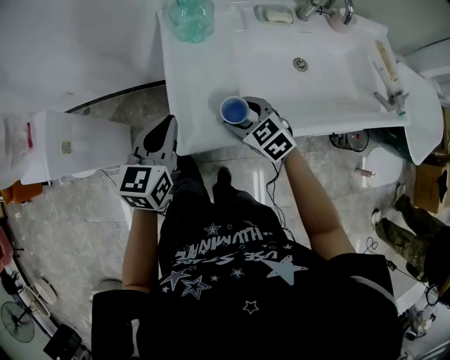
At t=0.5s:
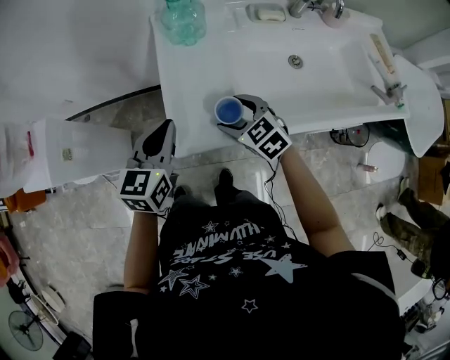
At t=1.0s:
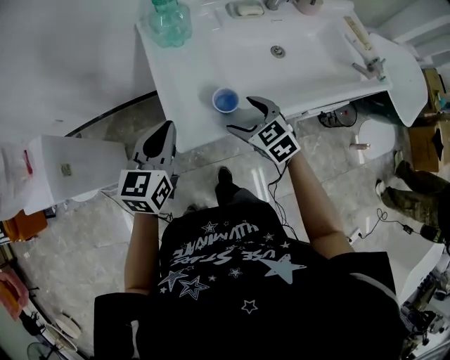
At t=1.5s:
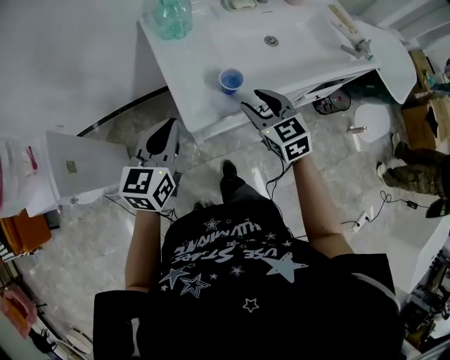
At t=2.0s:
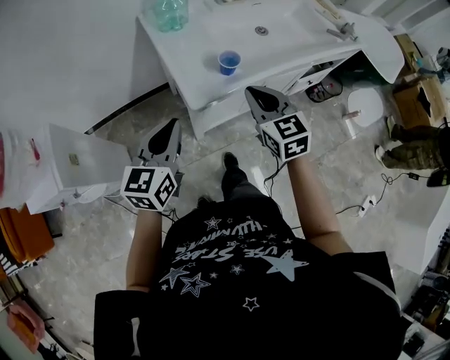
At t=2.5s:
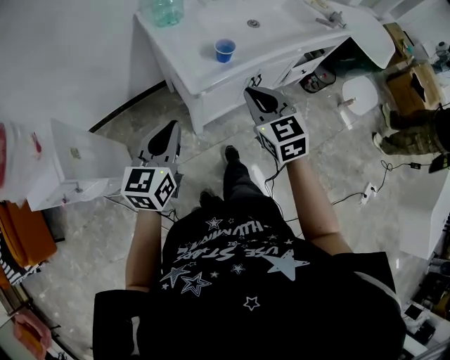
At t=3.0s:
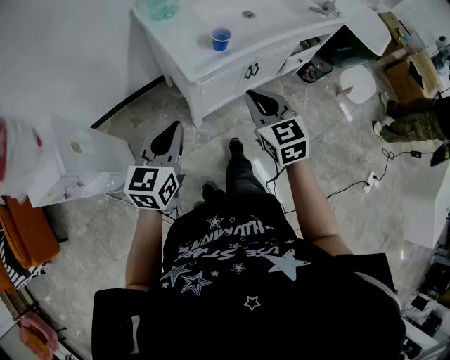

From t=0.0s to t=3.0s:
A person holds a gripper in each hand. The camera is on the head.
From t=0.0s to t=1.5s: The left gripper travels backward by some 5 cm. Meanwhile the right gripper is displaced upward and backward by about 15 cm, and swivels some 30 degrees.
From t=1.5s to t=3.0s: The two grippers go some 20 cm backward. The right gripper closes its fingers.

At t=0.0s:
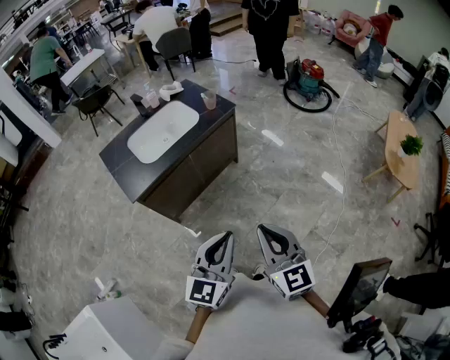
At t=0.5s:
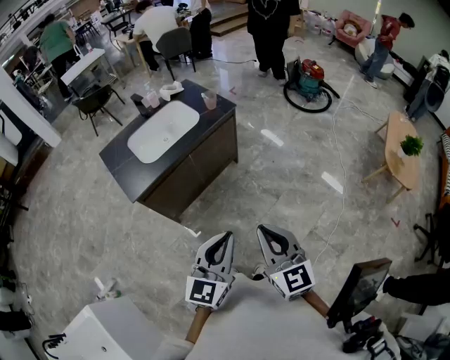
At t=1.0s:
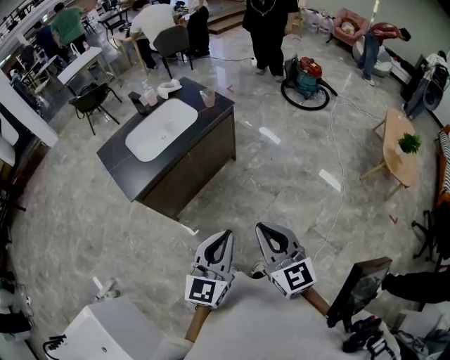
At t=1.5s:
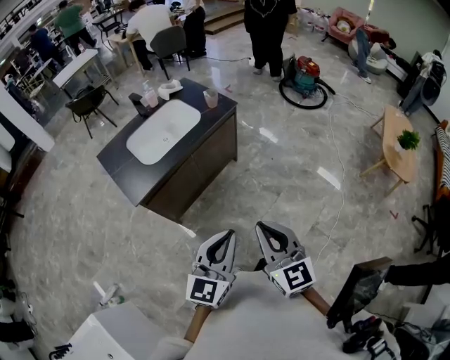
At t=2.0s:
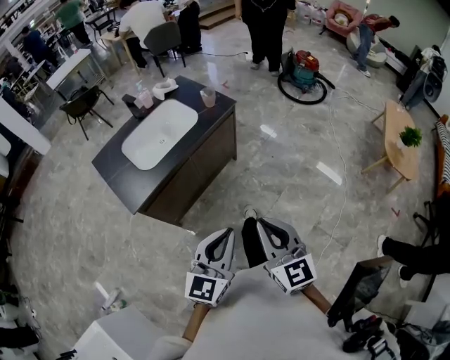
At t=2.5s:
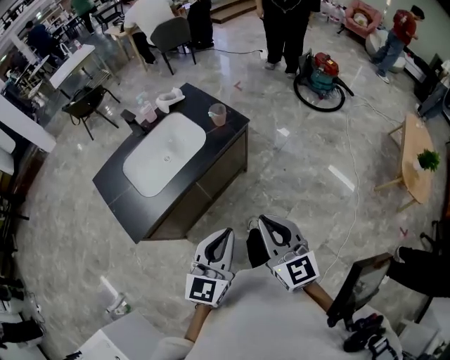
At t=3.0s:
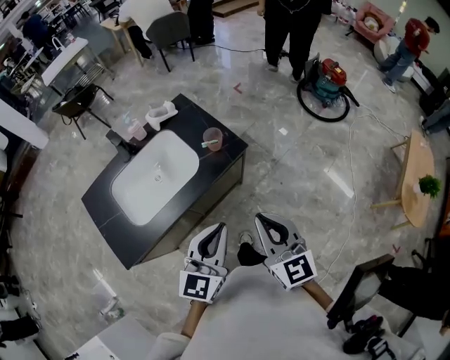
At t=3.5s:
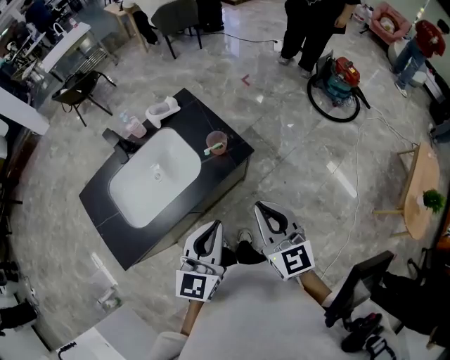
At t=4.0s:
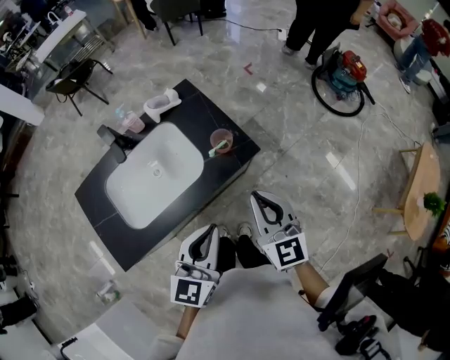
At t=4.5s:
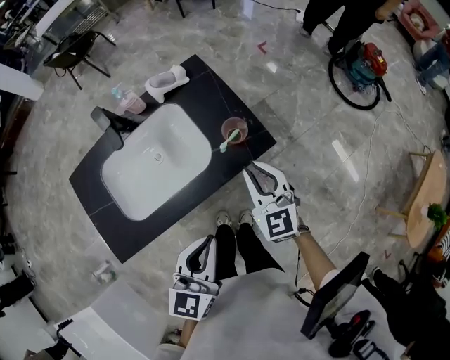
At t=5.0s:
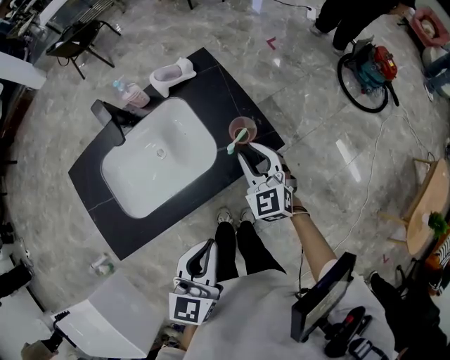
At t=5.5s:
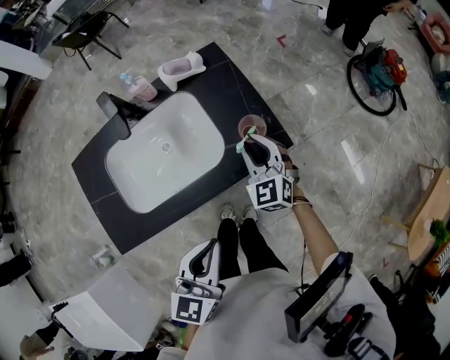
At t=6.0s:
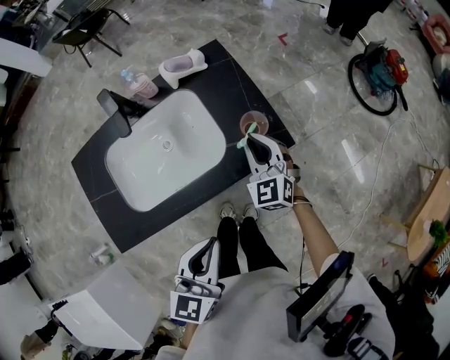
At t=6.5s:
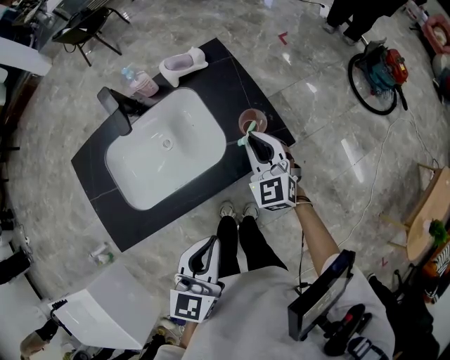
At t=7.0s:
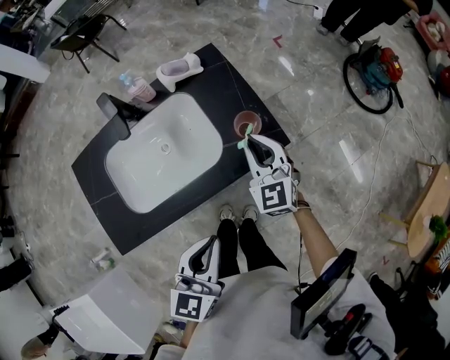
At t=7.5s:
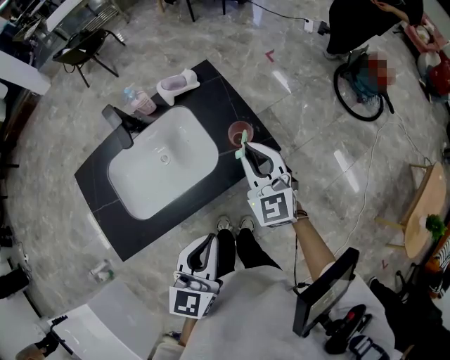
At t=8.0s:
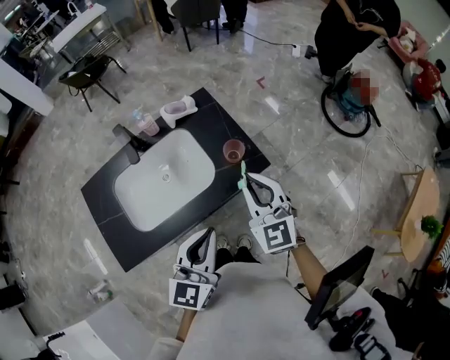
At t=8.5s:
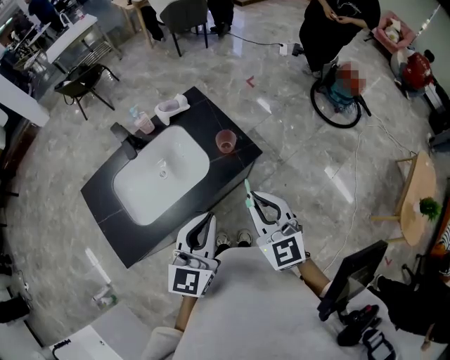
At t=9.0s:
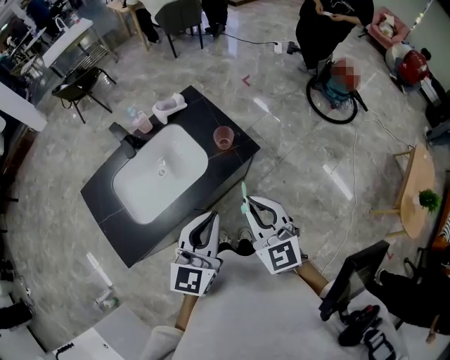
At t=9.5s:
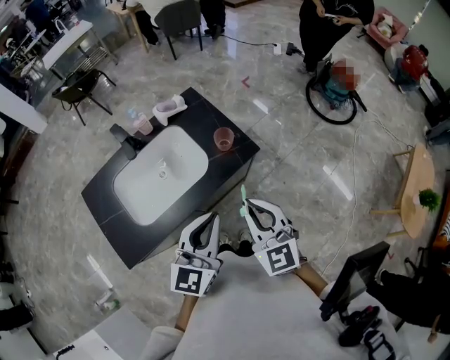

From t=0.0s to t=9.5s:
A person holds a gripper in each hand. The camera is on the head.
From t=0.0s to t=2.0s: Both grippers move forward, roughly 5 cm.
From t=2.0s to t=4.0s: Both grippers travel together forward, roughly 40 cm.
From t=4.0s to t=5.5s: The left gripper moves about 5 cm. Meanwhile the right gripper travels downward, forward and to the left by about 25 cm, swivels approximately 30 degrees, and opens up.
From t=5.5s to t=7.5s: The right gripper shifts some 10 cm upward.
From t=7.5s to t=9.5s: The left gripper heads upward, covering some 5 cm, while the right gripper heads backward, covering approximately 20 cm.

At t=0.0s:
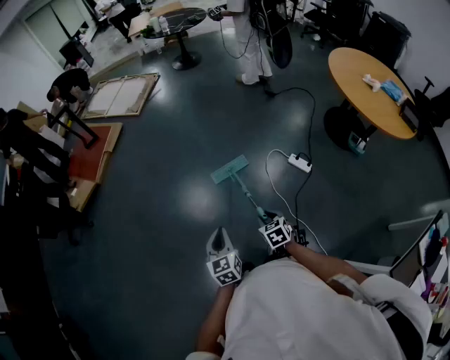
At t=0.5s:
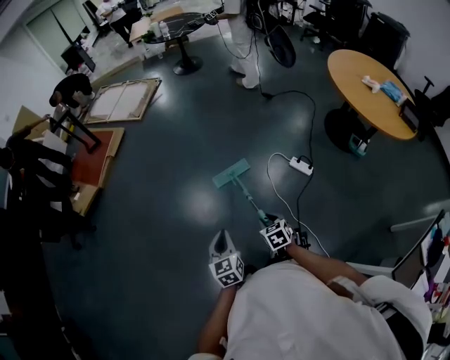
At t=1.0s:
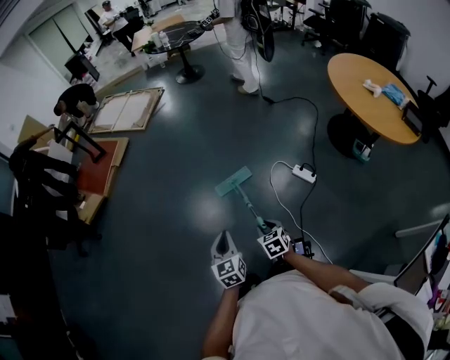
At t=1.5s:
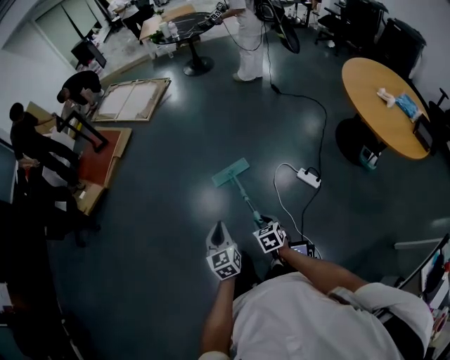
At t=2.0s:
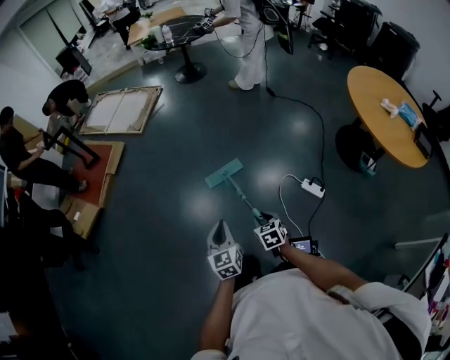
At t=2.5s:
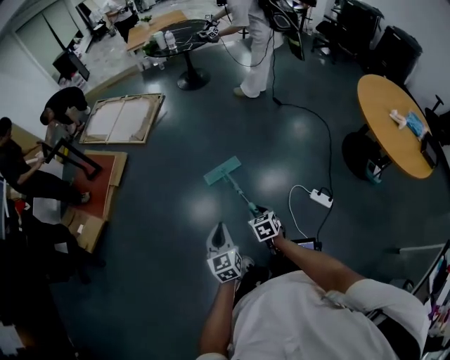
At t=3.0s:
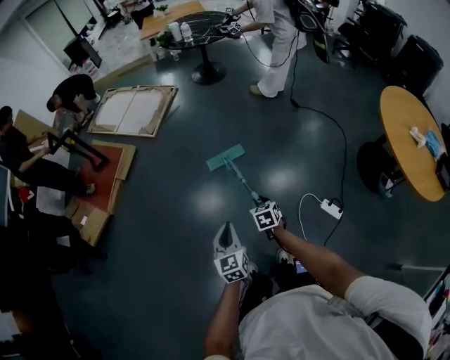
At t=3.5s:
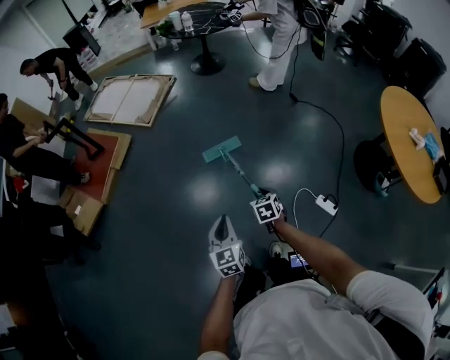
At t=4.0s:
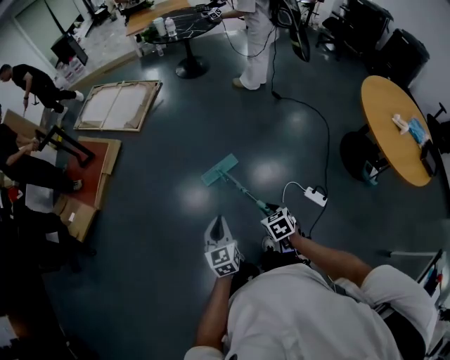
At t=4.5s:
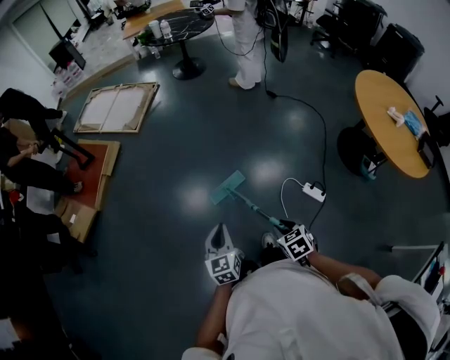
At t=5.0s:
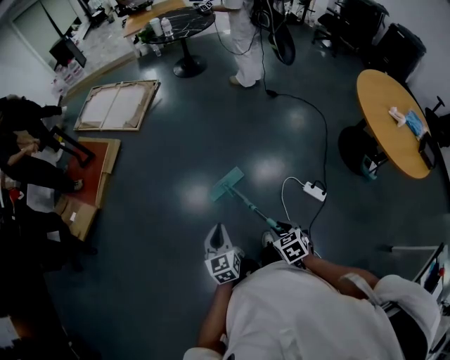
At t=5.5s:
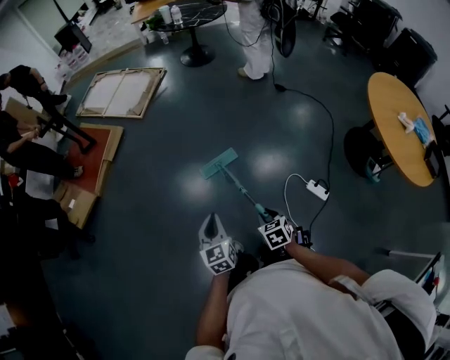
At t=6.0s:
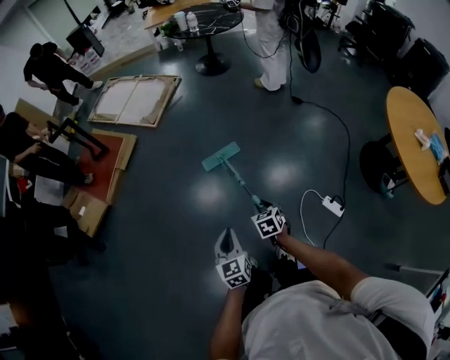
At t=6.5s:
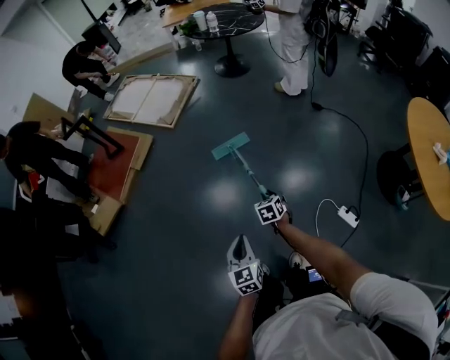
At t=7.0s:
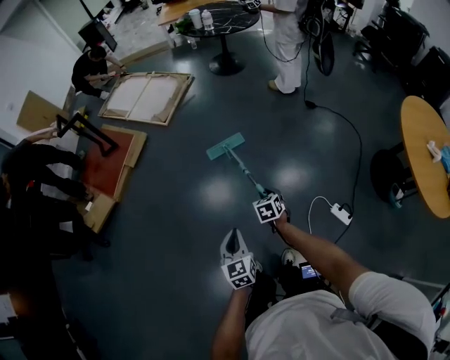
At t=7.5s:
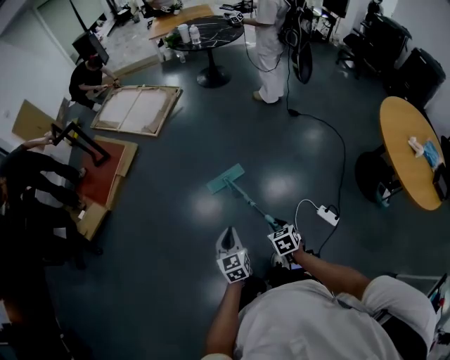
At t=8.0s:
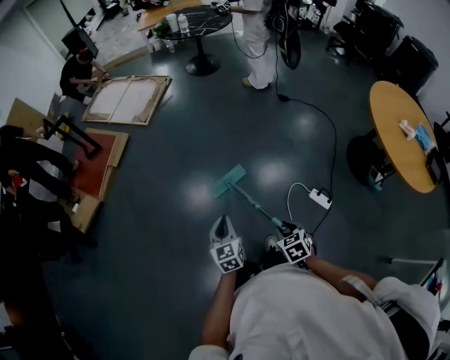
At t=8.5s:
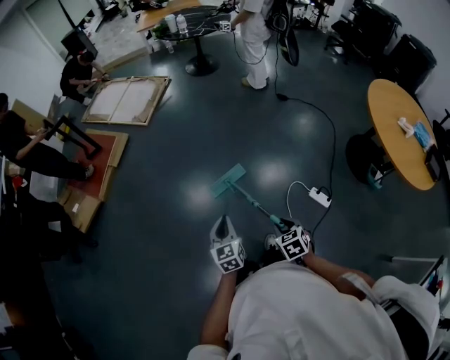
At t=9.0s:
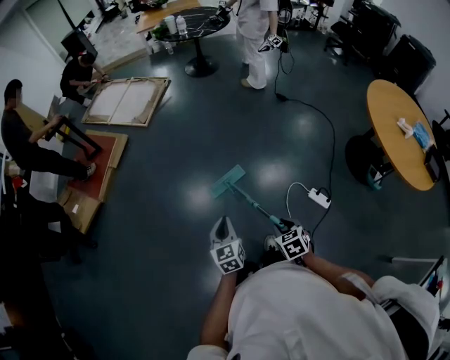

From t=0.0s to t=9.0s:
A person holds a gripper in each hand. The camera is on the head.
From t=0.0s to t=2.0s: The two grippers go some 25 cm forward.
From t=2.0s to t=4.5s: The left gripper heads forward, covering roughly 5 cm, while the right gripper shifts approximately 5 cm upward, and reaches roughly 25 cm forward, then returns.
From t=4.5s to t=7.0s: The left gripper shifts approximately 10 cm forward and to the left; the right gripper travels forward by approximately 30 cm.
From t=7.0s to t=9.0s: The right gripper moves backward, about 30 cm; the left gripper heads backward, covering about 10 cm.

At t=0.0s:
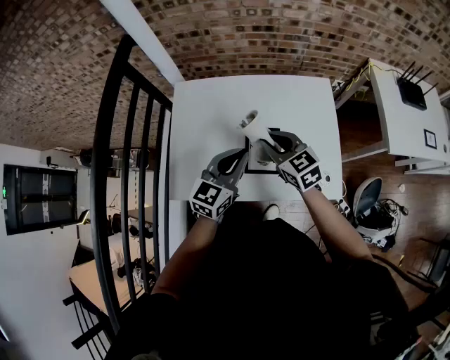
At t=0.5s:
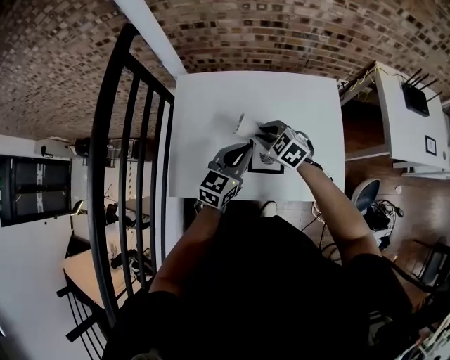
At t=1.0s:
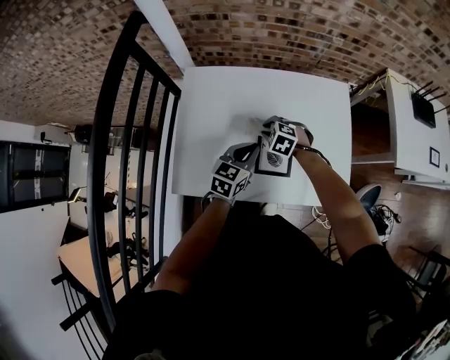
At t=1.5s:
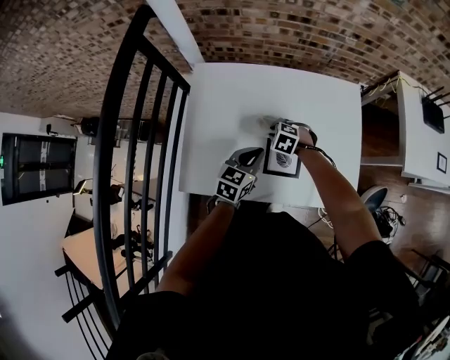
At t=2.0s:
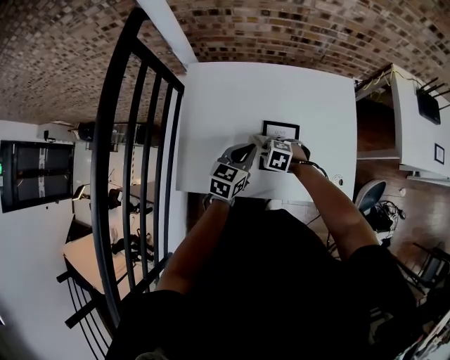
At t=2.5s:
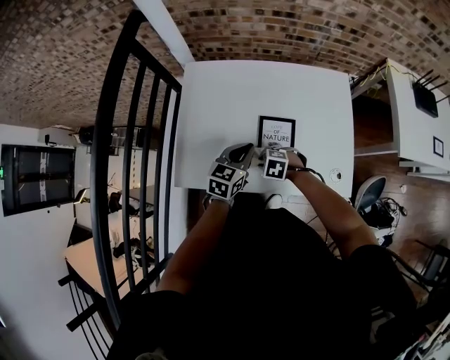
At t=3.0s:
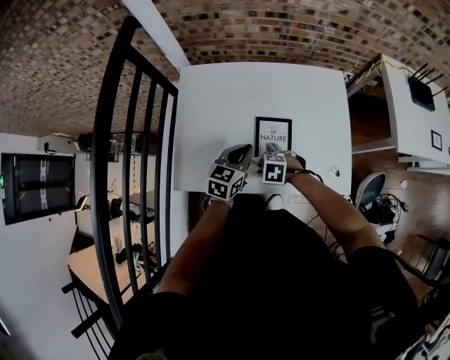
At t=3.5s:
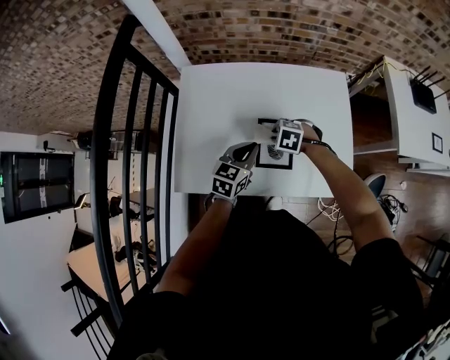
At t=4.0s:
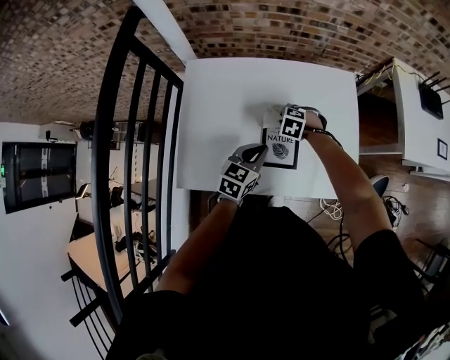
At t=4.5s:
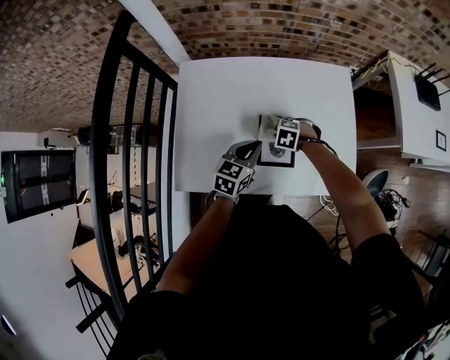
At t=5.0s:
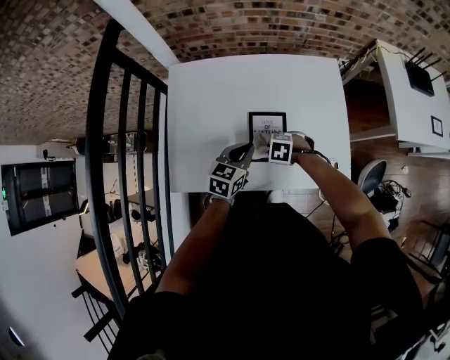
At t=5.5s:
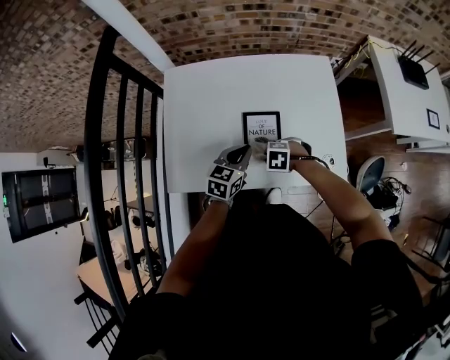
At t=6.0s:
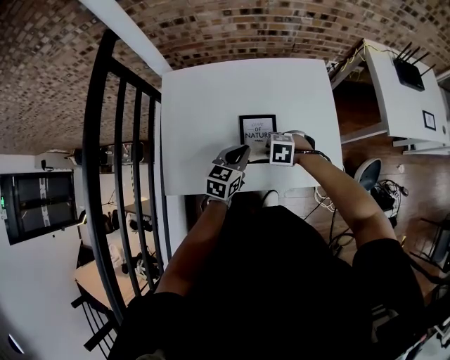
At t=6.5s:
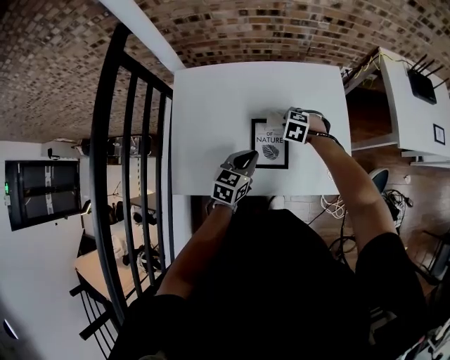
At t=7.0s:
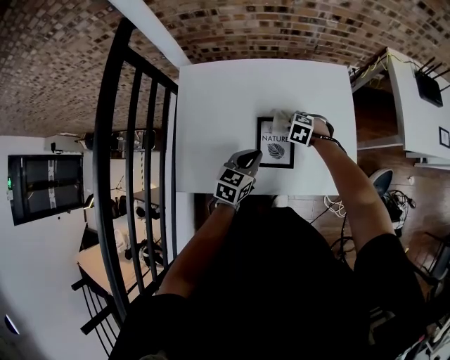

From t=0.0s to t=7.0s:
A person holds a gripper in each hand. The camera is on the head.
From t=0.0s to t=2.0s: The left gripper travels downward by about 15 cm, while the right gripper shifts roughly 20 cm downward, and points its fingers approximately 40 degrees further downward.
From t=2.0s to t=3.5s: The right gripper changes place by about 10 cm.
From t=3.5s to t=5.0s: The right gripper moves some 10 cm.
From t=5.0s to t=7.0s: The right gripper changes place by some 15 cm.
